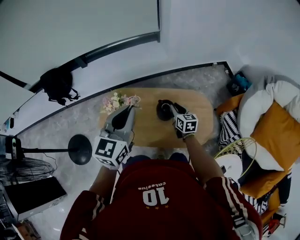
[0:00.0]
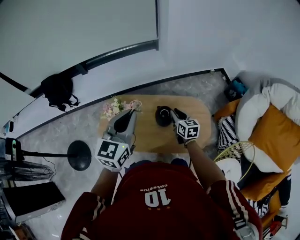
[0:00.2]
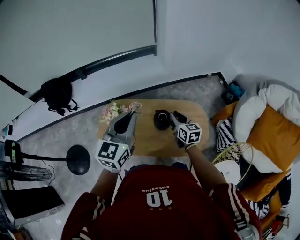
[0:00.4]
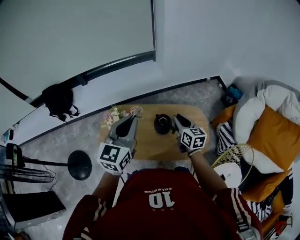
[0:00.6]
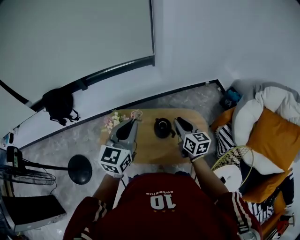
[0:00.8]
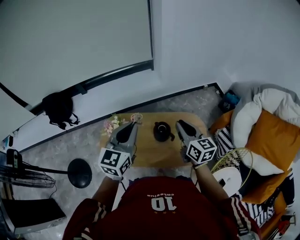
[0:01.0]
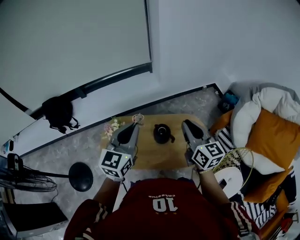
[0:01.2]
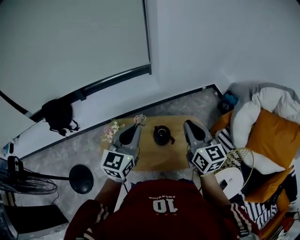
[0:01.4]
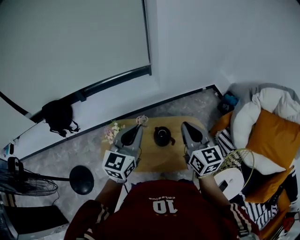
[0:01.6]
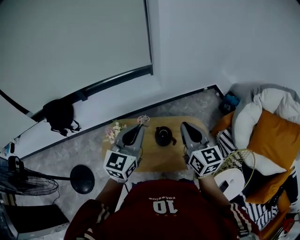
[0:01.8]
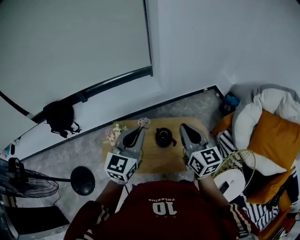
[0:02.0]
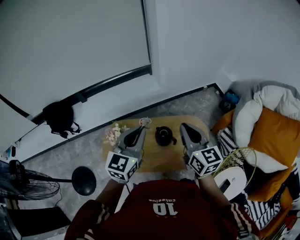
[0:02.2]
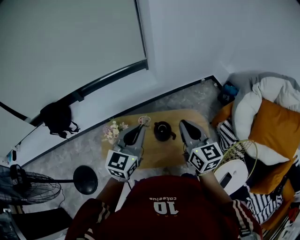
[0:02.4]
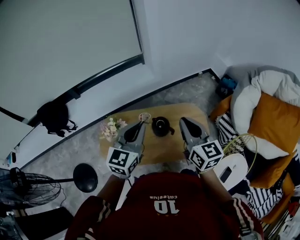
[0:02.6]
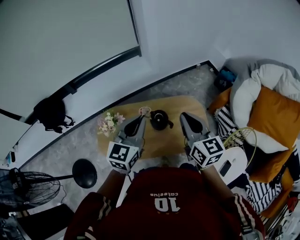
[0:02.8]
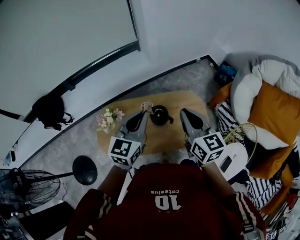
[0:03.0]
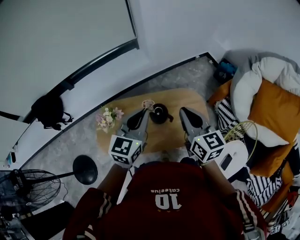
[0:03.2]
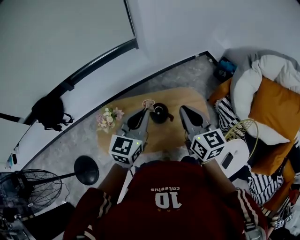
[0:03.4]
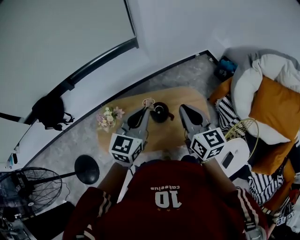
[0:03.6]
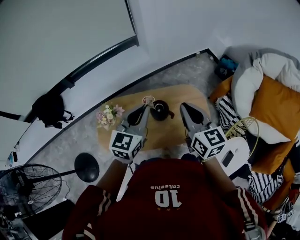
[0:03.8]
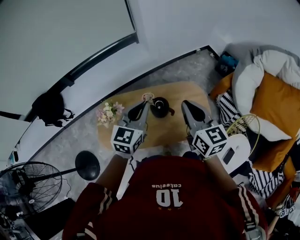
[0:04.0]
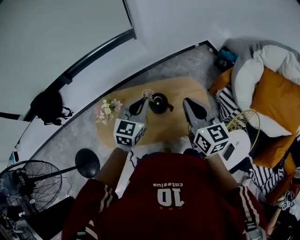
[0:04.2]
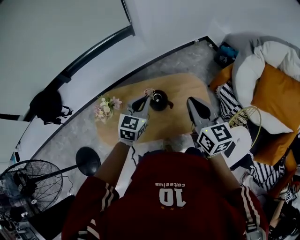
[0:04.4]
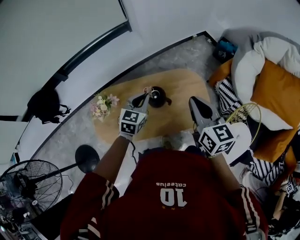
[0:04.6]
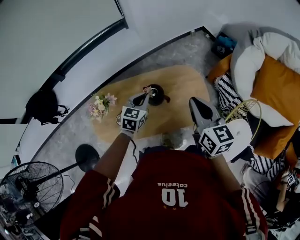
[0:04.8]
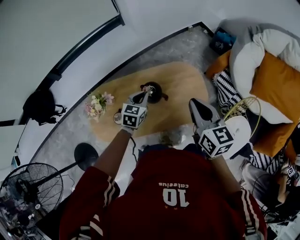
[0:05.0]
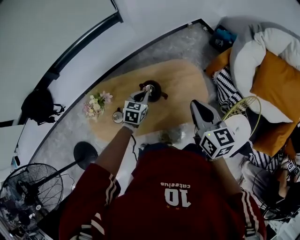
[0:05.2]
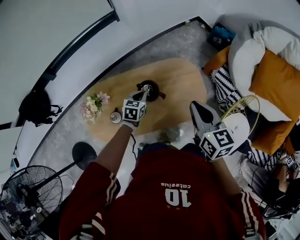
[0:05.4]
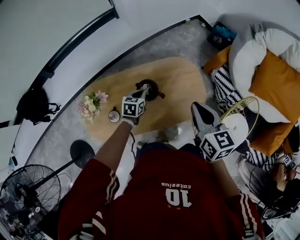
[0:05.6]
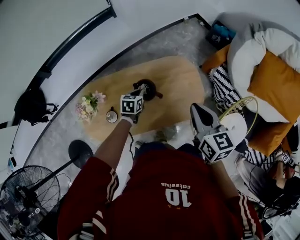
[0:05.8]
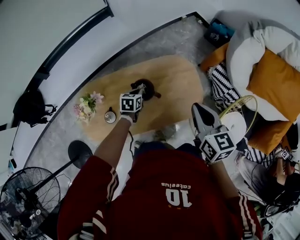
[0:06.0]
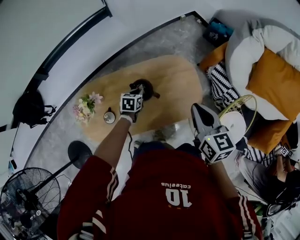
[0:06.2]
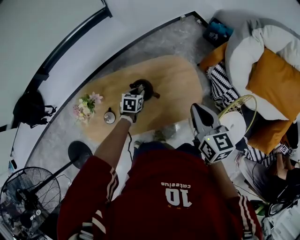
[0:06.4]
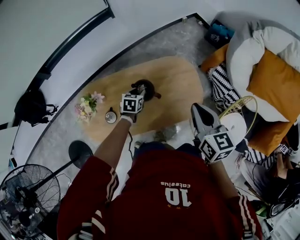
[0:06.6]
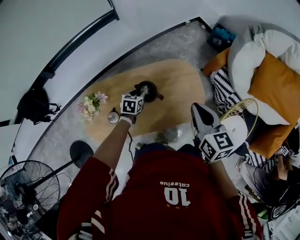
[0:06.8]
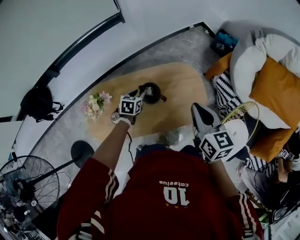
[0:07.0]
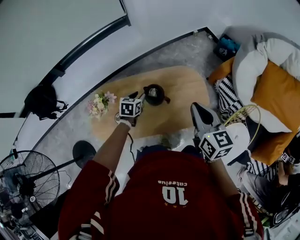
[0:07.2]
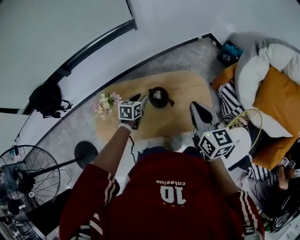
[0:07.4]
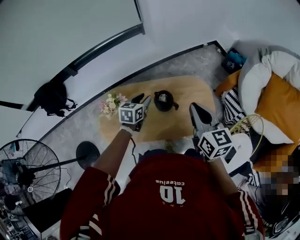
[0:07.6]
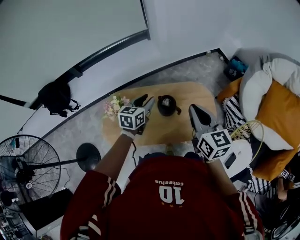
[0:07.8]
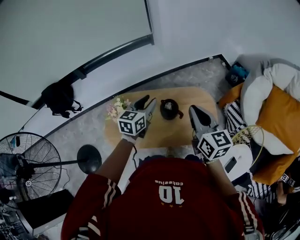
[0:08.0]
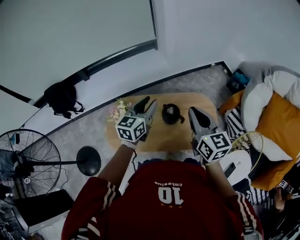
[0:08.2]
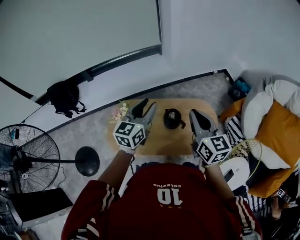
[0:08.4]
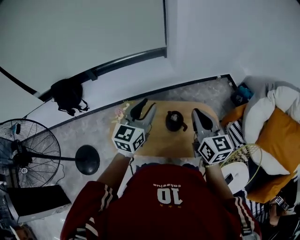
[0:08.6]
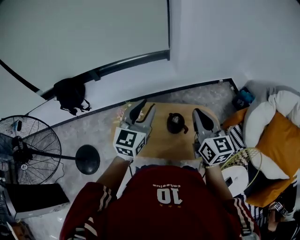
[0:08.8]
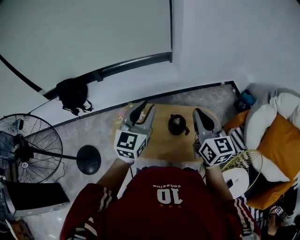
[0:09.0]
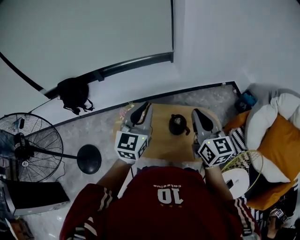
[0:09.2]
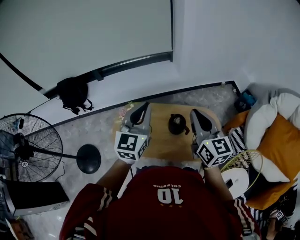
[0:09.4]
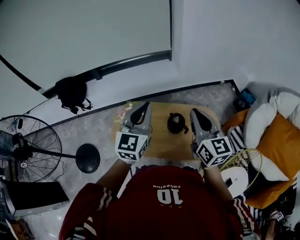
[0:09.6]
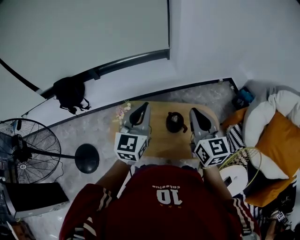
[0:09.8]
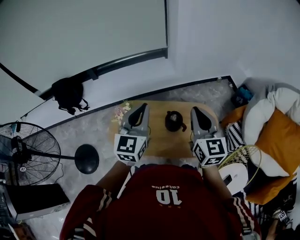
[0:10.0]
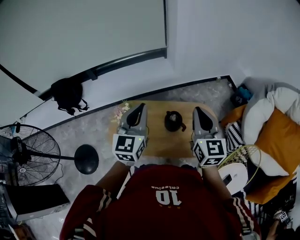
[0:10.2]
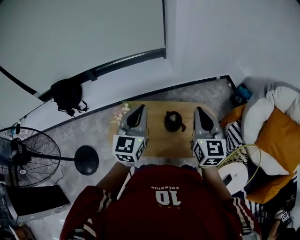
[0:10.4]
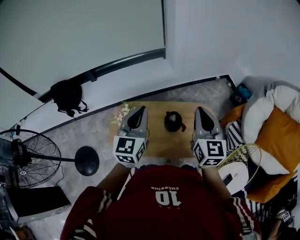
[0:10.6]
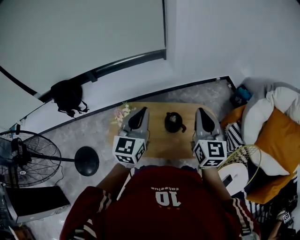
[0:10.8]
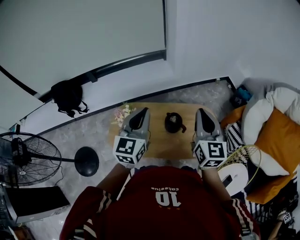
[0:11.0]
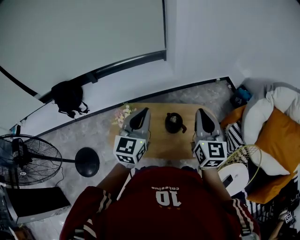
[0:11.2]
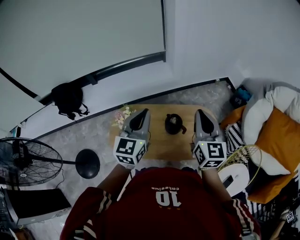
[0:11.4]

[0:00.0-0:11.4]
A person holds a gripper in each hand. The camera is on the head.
0:00.0 to 0:01.4: The left gripper moves about 5 cm, while the right gripper shifts roughly 30 cm upward, and changes its angle by approximately 30 degrees.
0:01.4 to 0:02.8: The left gripper heads downward, covering some 5 cm.
0:02.8 to 0:04.2: The left gripper travels downward by approximately 10 cm.
0:04.2 to 0:05.6: The right gripper shifts roughly 10 cm downward and to the right. The left gripper travels downward by some 30 cm, and swivels roughly 30 degrees.
0:05.6 to 0:07.2: The left gripper shifts roughly 5 cm to the left, and opens its fingers.
0:07.2 to 0:08.6: The left gripper moves upward, roughly 35 cm, and points its fingers some 40 degrees further upward; the right gripper shifts about 15 cm upward and to the left.
0:08.6 to 0:10.0: The left gripper closes.
0:10.0 to 0:11.4: The grippers move only a little.

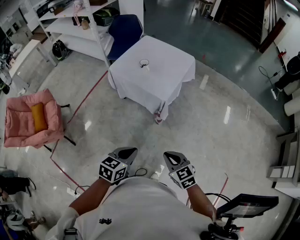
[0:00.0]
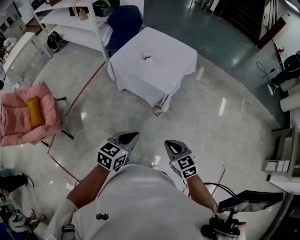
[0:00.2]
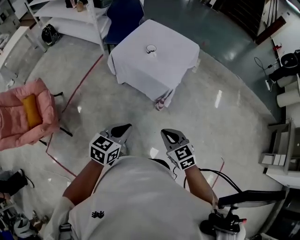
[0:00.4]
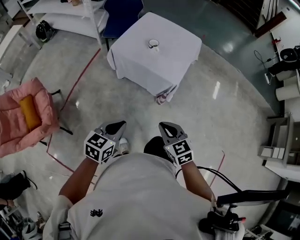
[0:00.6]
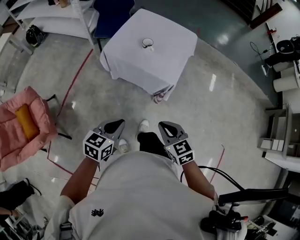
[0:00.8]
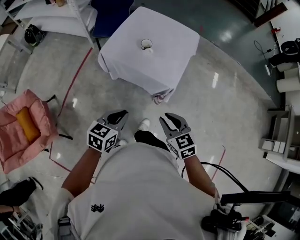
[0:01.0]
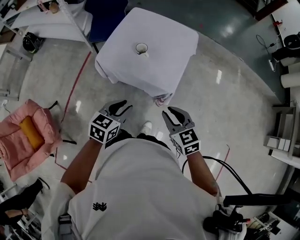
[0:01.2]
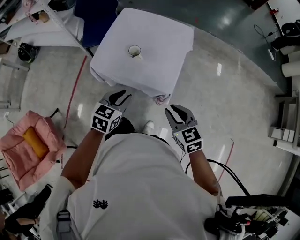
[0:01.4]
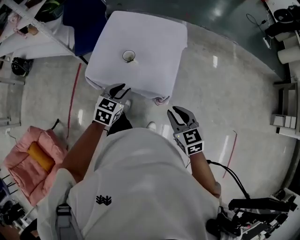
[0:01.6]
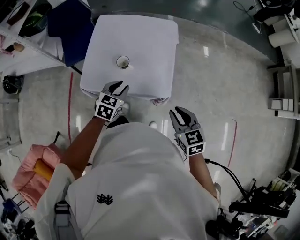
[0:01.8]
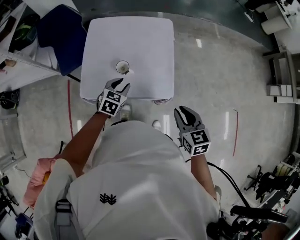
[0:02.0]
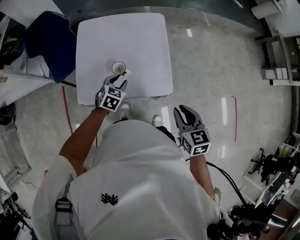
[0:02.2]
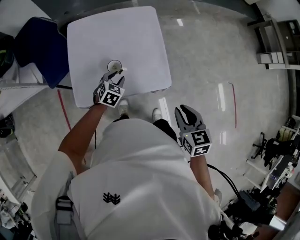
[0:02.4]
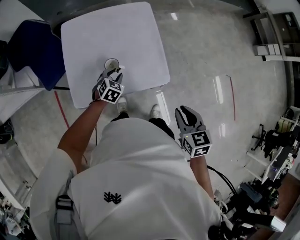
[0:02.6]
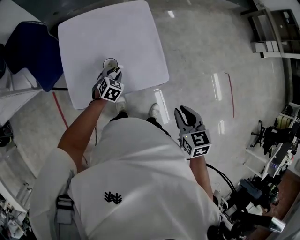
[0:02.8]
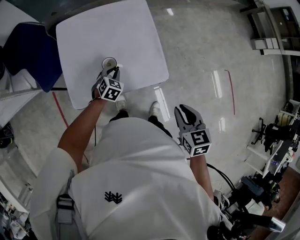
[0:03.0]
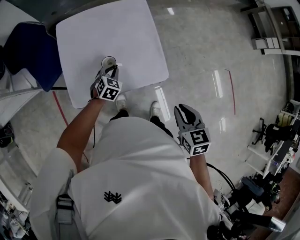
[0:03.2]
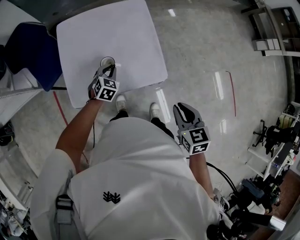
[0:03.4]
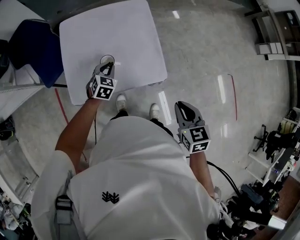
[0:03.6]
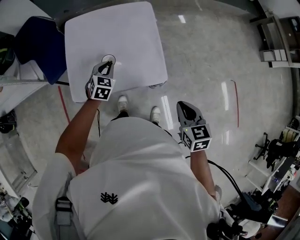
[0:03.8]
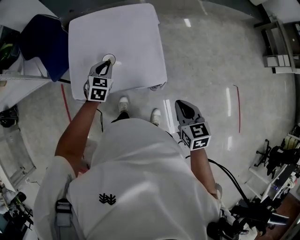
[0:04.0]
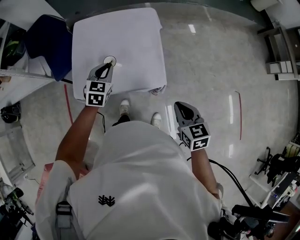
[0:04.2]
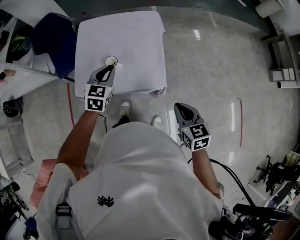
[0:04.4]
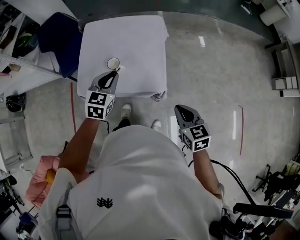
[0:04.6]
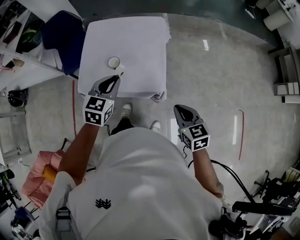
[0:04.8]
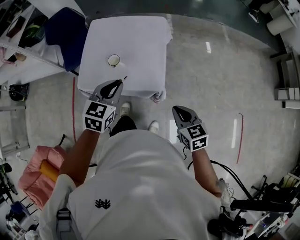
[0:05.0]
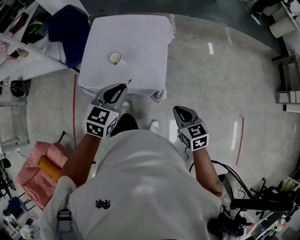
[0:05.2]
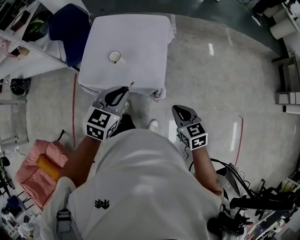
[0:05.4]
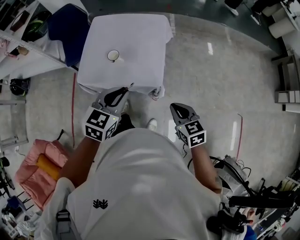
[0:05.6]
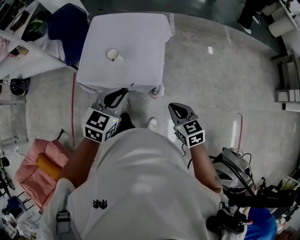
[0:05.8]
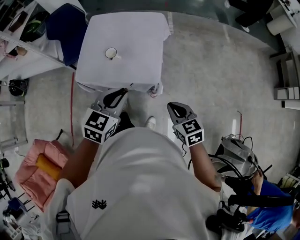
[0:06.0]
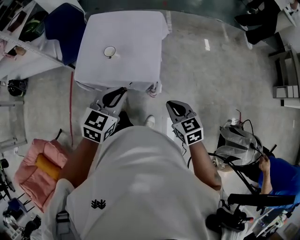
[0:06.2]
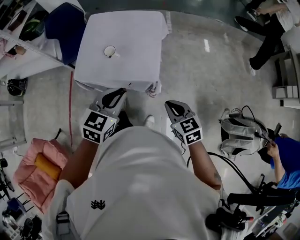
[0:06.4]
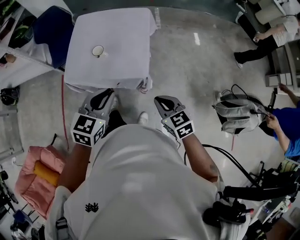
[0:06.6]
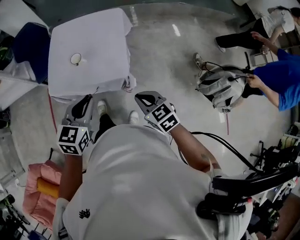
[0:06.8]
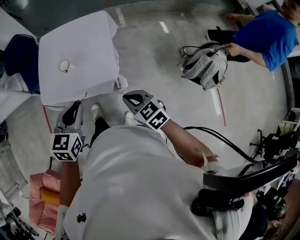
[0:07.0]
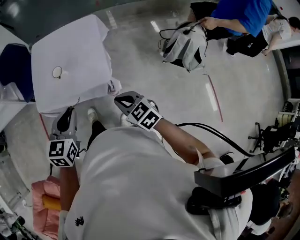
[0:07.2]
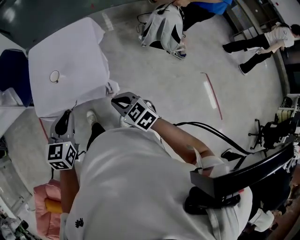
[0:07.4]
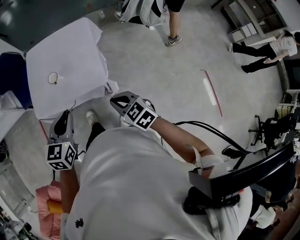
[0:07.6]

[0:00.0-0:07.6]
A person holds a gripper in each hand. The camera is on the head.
0:00.0 to 0:01.6: Both grippers travel together forward, some 40 cm. The left gripper swivels some 20 degrees, and opens its fingers, while the right gripper changes its angle by roughly 20 degrees.
0:01.6 to 0:03.0: The left gripper shifts by approximately 25 cm, and turns by approximately 30 degrees. Meanwhile the right gripper ends up some 5 cm from where it was, and swivels about 40 degrees.
0:03.0 to 0:04.6: The right gripper shifts about 10 cm to the right, and changes its angle by about 20 degrees. Meanwhile the left gripper shifts roughly 25 cm upward and backward, and swivels approximately 30 degrees.
0:04.6 to 0:06.0: The left gripper is displaced backward and to the right by roughly 20 cm. The right gripper moves approximately 5 cm.
0:06.0 to 0:07.6: The grippers stay close to where they were, moving slightly.

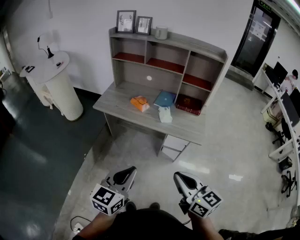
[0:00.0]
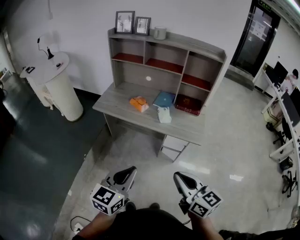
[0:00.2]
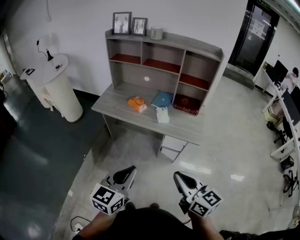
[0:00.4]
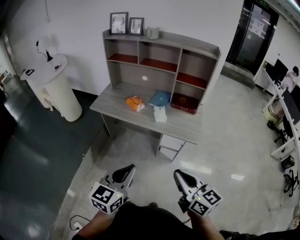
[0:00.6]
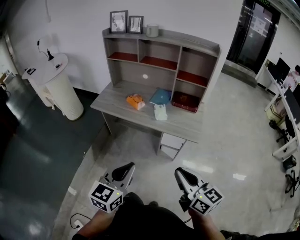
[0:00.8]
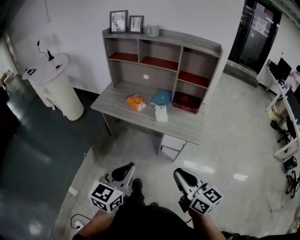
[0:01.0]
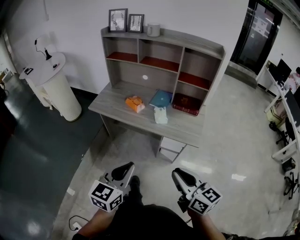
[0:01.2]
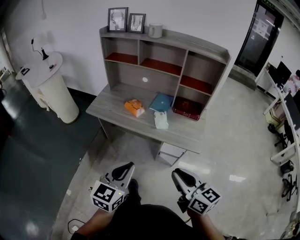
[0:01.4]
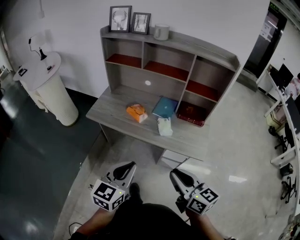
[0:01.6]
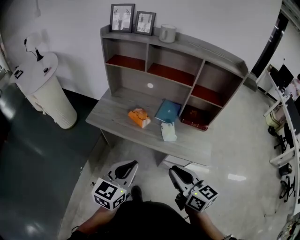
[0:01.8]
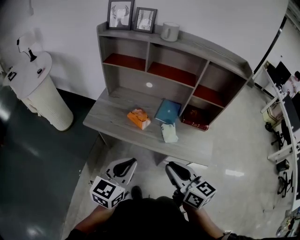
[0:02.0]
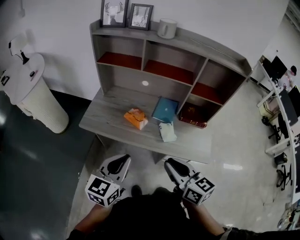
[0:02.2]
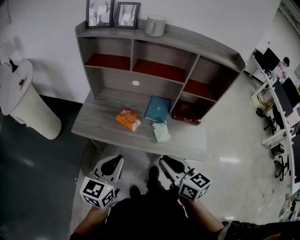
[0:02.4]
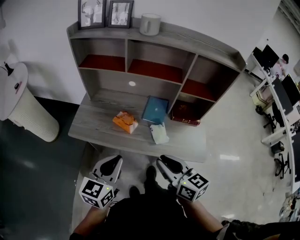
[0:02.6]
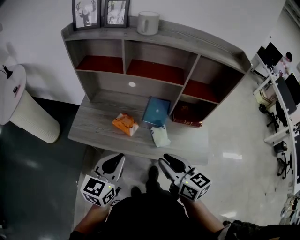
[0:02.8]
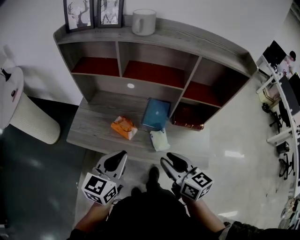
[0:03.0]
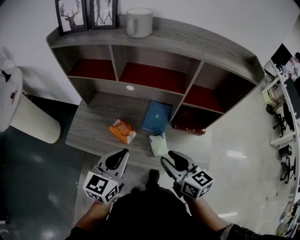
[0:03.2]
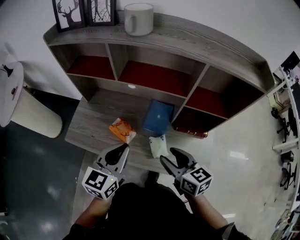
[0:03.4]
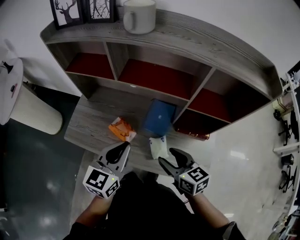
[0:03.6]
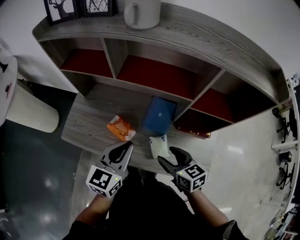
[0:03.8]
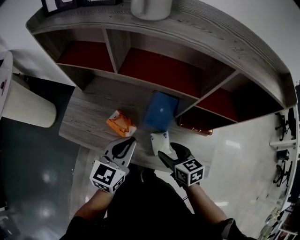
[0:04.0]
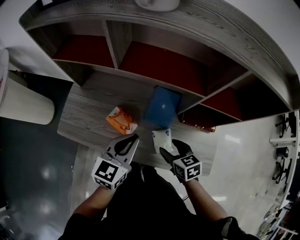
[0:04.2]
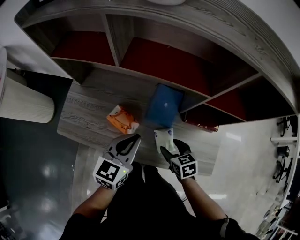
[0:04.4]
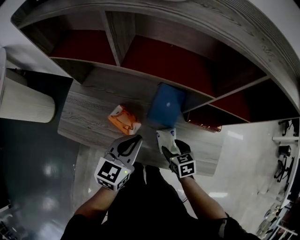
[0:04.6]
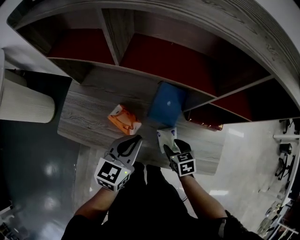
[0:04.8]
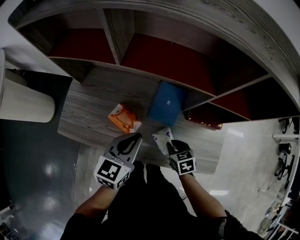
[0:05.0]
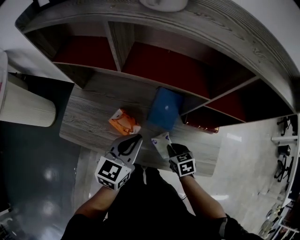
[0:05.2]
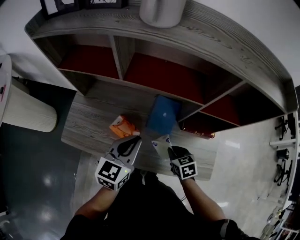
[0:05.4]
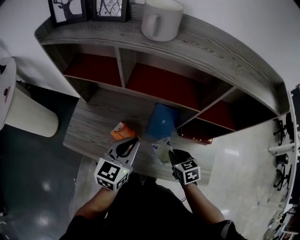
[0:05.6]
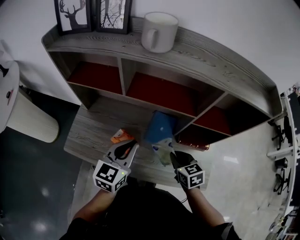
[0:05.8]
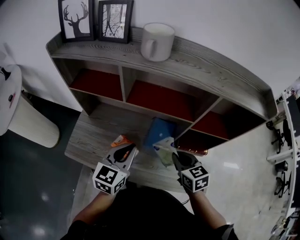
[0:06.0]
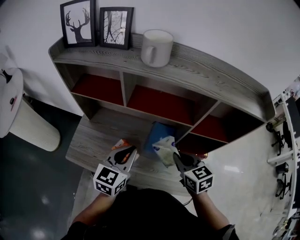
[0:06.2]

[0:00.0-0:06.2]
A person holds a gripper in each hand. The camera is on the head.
0:00.0 to 0:01.6: Both grippers travel together forward, about 15 cm.
0:01.6 to 0:03.2: Both grippers travel together forward, some 30 cm. The right gripper opens.
0:03.2 to 0:04.6: The right gripper is displaced downward by about 25 cm, tilts its fingers approximately 30 degrees downward, and opens its fingers. Meanwhile the left gripper moves downward and forward, about 15 cm.
0:04.6 to 0:06.2: The right gripper heads upward, covering some 25 cm, swivels roughly 20 degrees, and closes up; the left gripper is displaced upward by approximately 10 cm.
